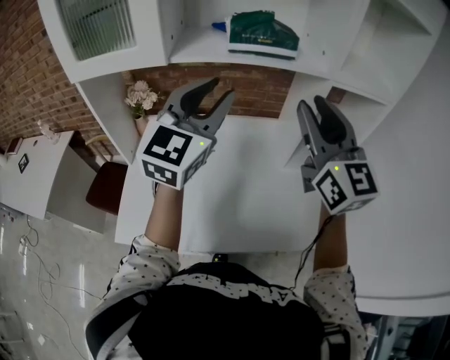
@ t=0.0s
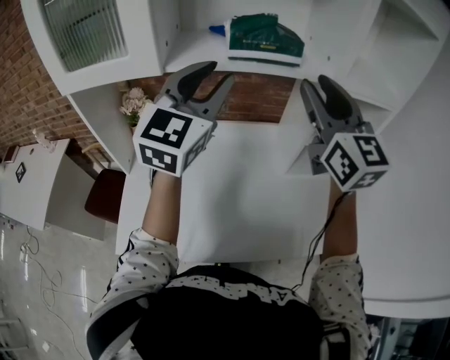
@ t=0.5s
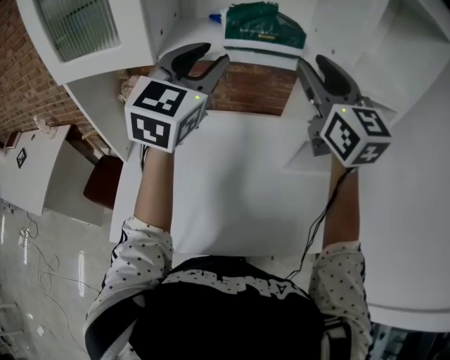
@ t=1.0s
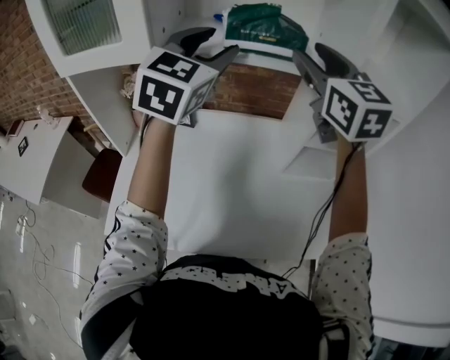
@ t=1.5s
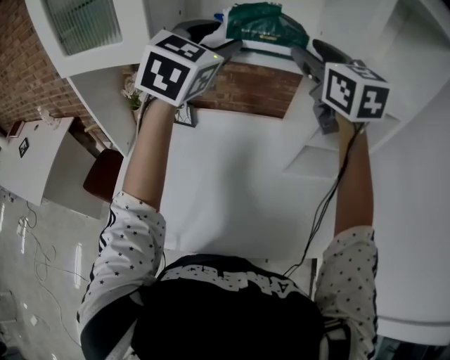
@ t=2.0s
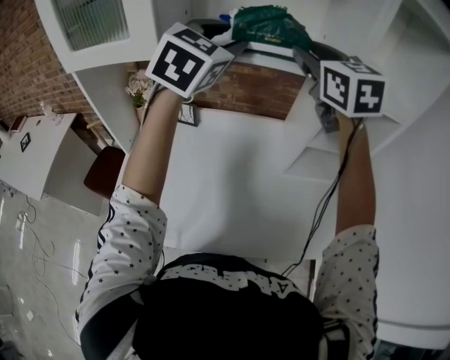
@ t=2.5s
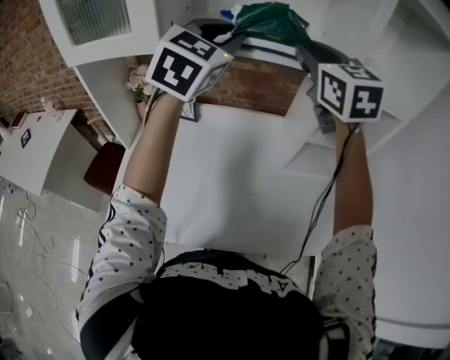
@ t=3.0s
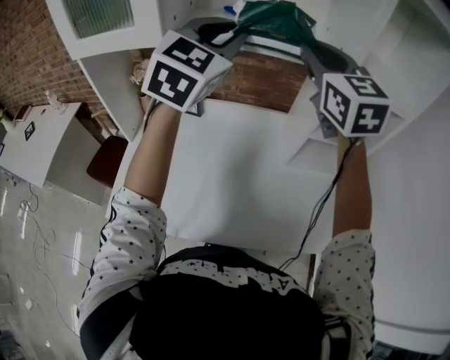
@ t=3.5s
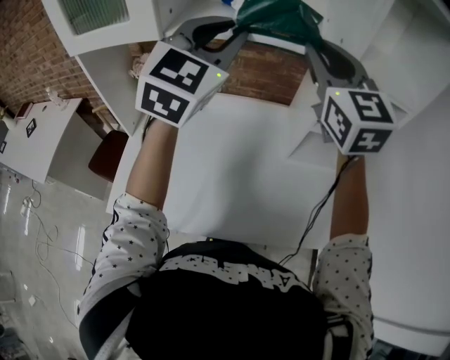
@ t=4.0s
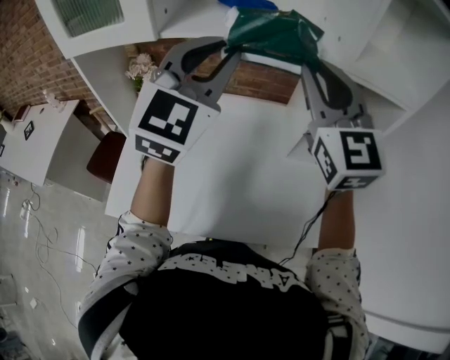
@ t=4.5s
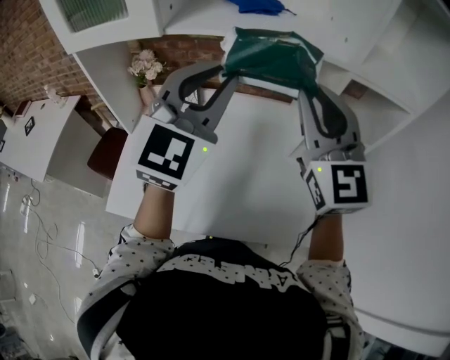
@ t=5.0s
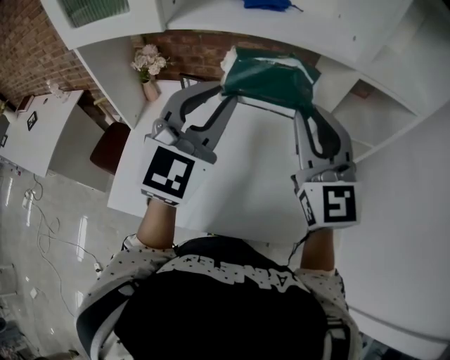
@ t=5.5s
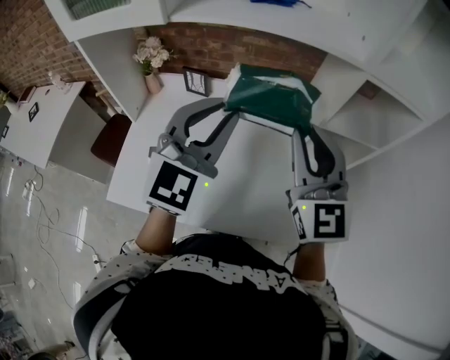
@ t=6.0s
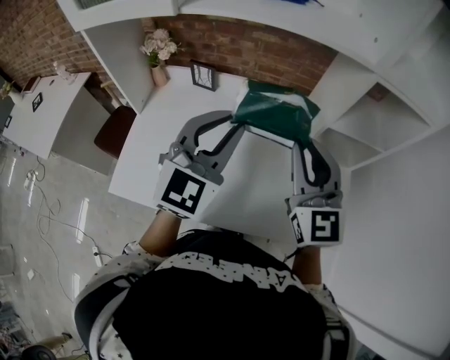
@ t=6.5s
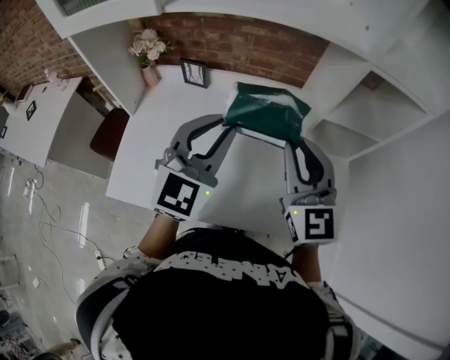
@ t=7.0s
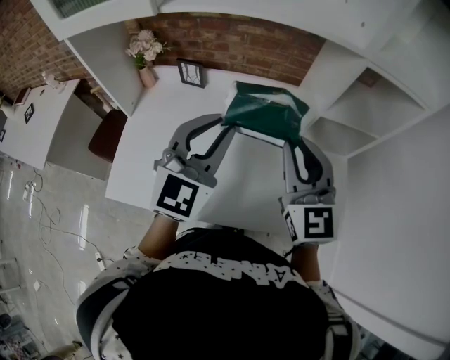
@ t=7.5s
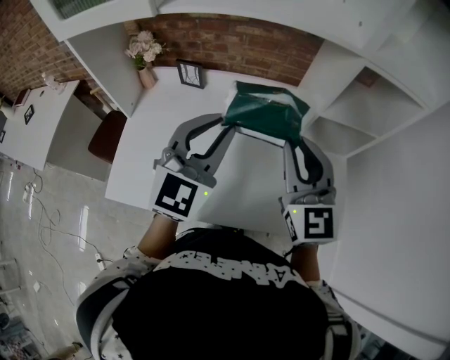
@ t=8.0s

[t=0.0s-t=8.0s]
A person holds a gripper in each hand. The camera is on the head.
t=0.0s to t=2.0s: Both grippers travel together forward, roughly 15 cm.
t=2.0s to t=4.0s: Both grippers travel together backward, roughly 5 cm. The left gripper closes its fingers; the right gripper closes.
t=4.0s to t=6.0s: Both grippers travel together downward and backward, some 15 cm.
t=6.0s to t=8.0s: The two grippers go roughly 5 cm downward.

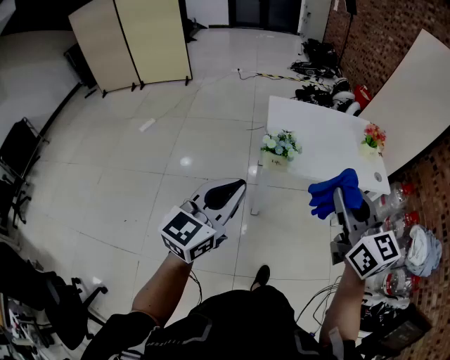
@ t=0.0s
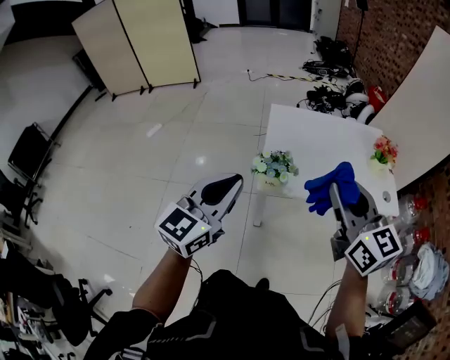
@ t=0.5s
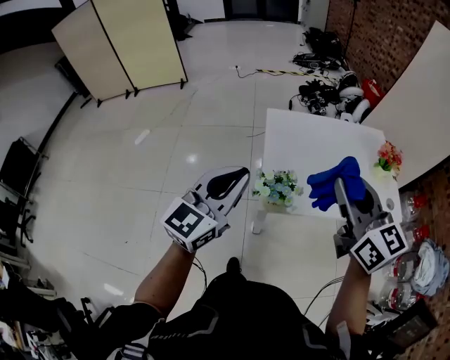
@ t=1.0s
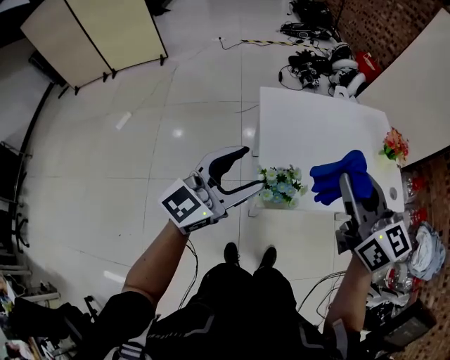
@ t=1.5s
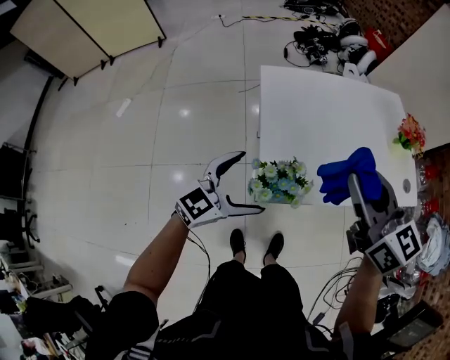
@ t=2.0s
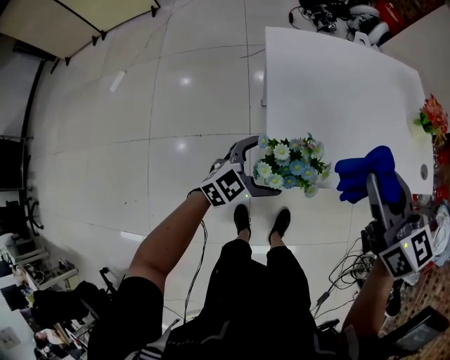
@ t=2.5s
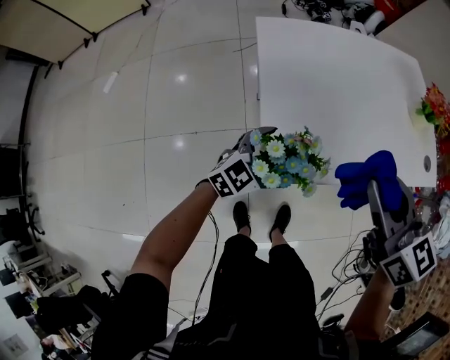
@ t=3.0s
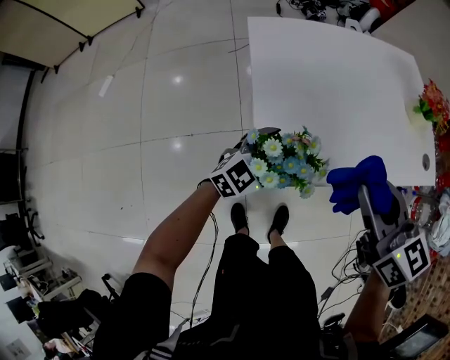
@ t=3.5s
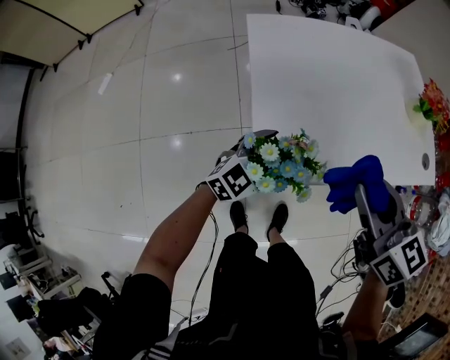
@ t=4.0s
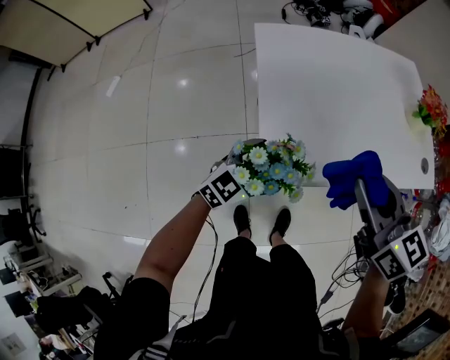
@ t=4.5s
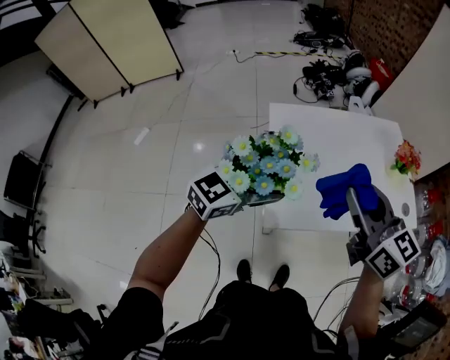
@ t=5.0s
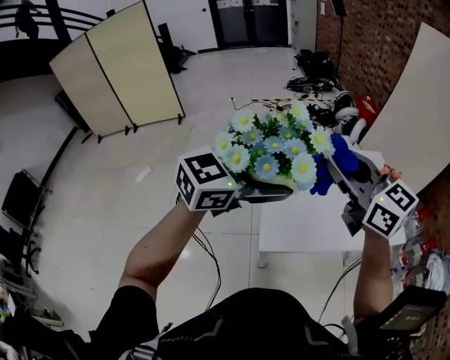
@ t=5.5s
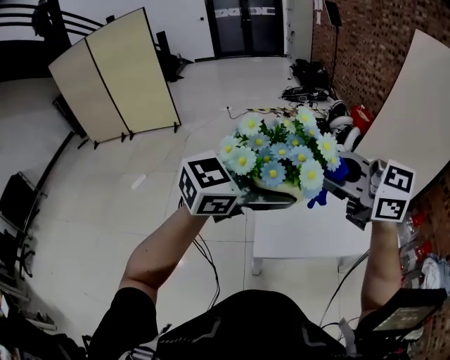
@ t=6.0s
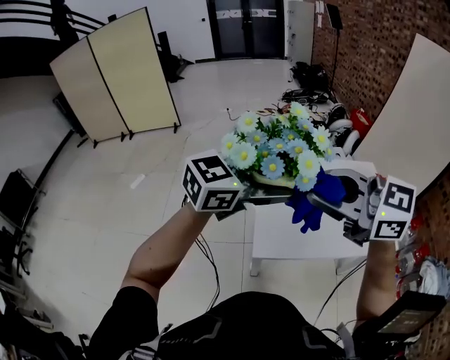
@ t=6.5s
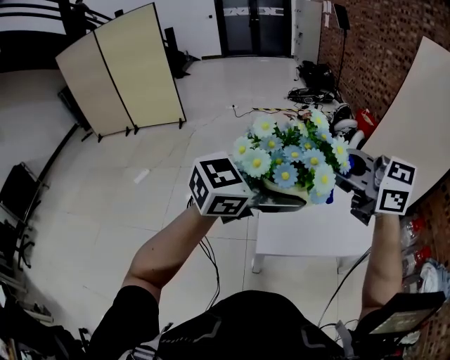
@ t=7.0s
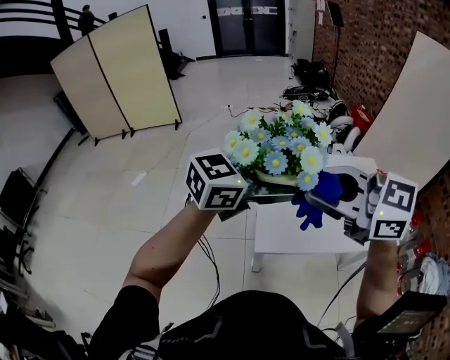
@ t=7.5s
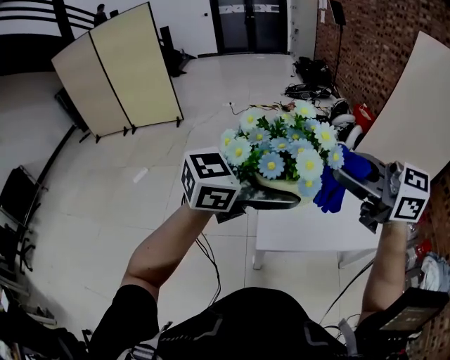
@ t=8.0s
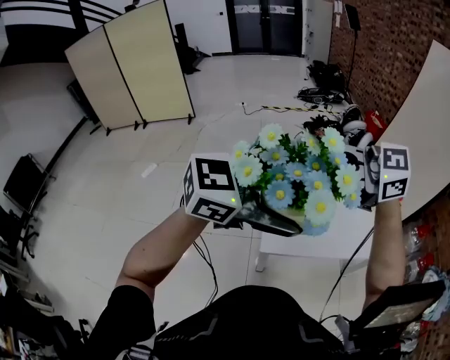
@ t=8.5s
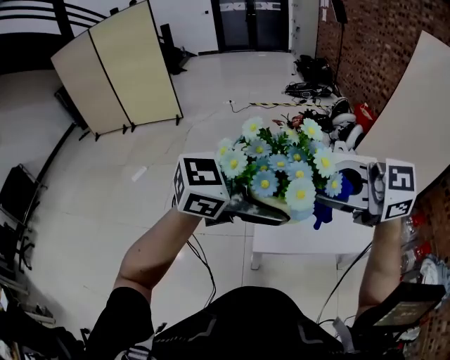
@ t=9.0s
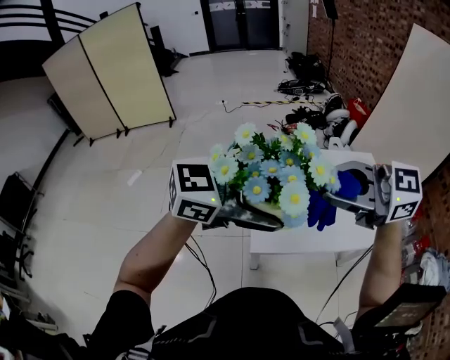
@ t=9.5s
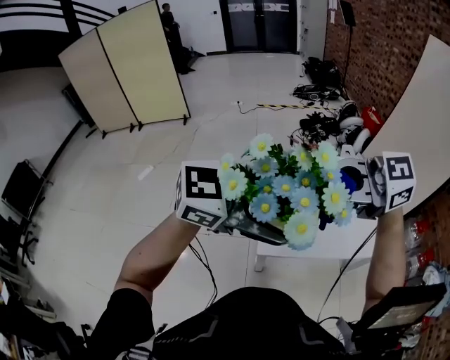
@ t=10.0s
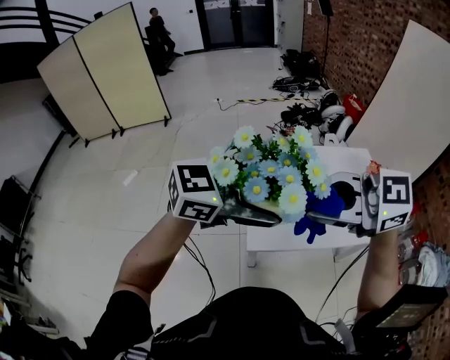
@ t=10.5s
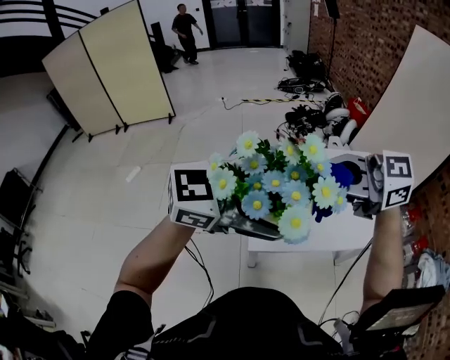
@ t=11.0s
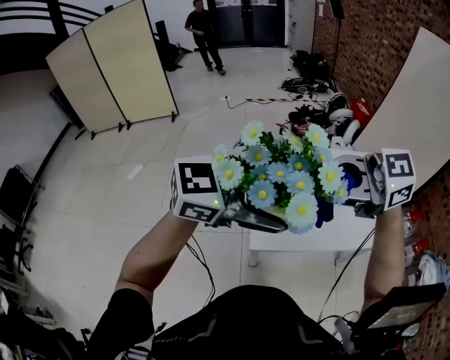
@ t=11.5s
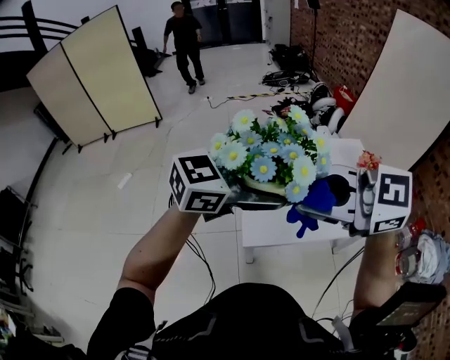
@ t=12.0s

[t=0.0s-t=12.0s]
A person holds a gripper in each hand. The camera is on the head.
t=0.0s to t=2.0s: The two grippers travel together, forward, approximately 40 cm. The left gripper travels downward by some 20 cm, rotates roughly 30 degrees, and opens its fingers.
t=2.0s to t=4.0s: Both grippers travel together downward, approximately 15 cm.
t=4.0s to t=6.0s: Both grippers move upward, some 40 cm. The right gripper rotates roughly 40 degrees.
t=8.0s to t=10.0s: The right gripper rotates approximately 30 degrees.
t=10.0s to t=12.0s: The right gripper shifts by roughly 10 cm.

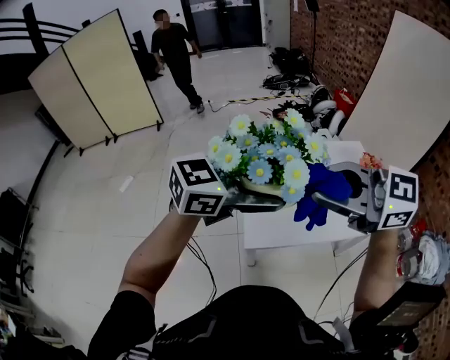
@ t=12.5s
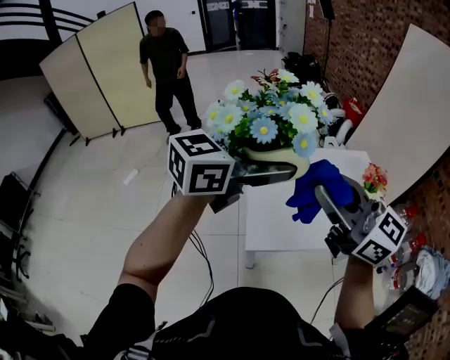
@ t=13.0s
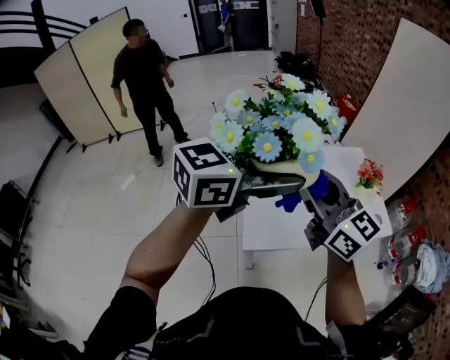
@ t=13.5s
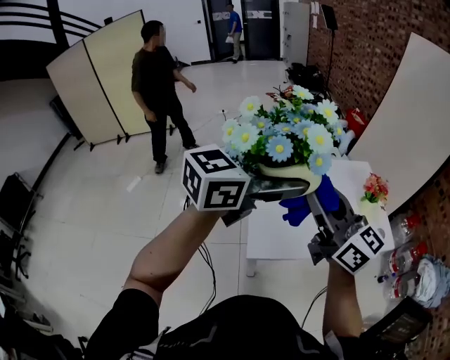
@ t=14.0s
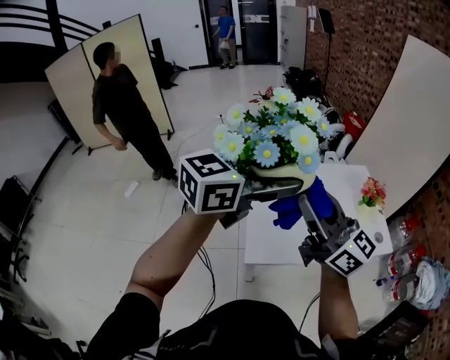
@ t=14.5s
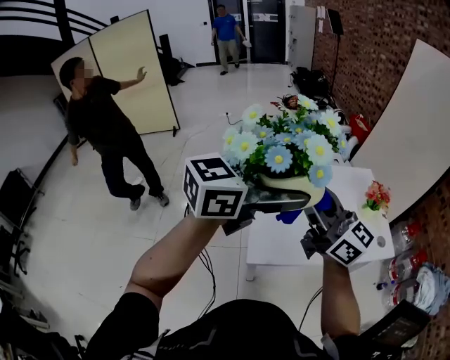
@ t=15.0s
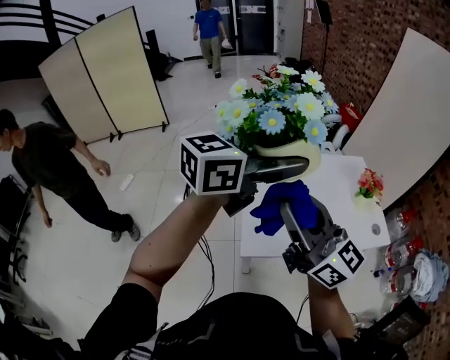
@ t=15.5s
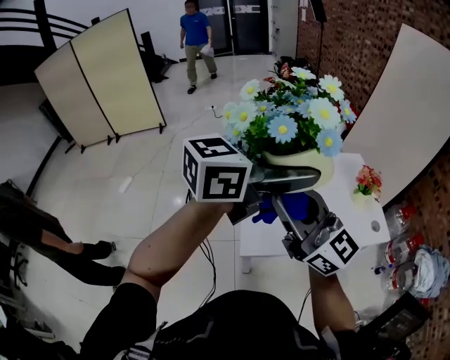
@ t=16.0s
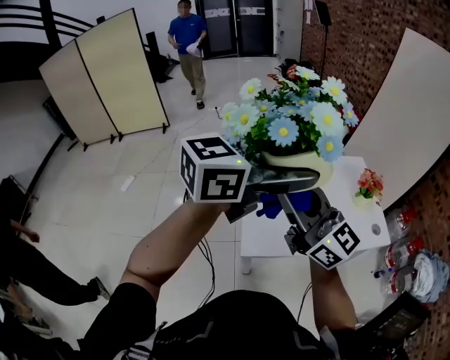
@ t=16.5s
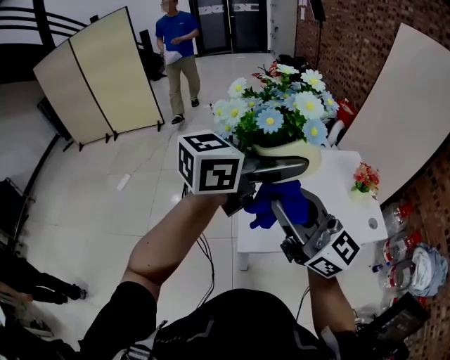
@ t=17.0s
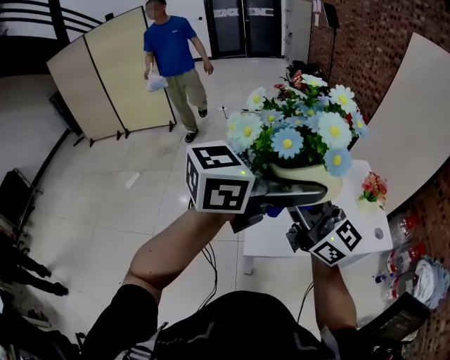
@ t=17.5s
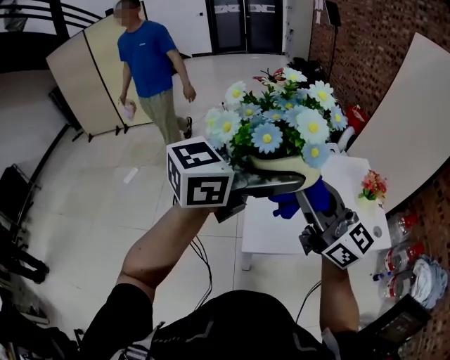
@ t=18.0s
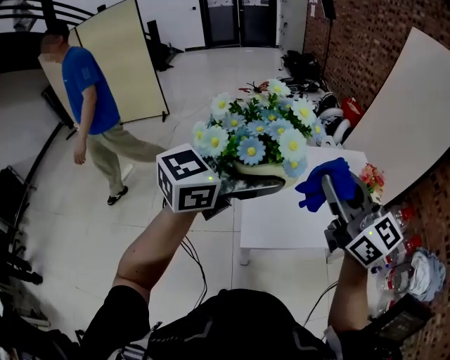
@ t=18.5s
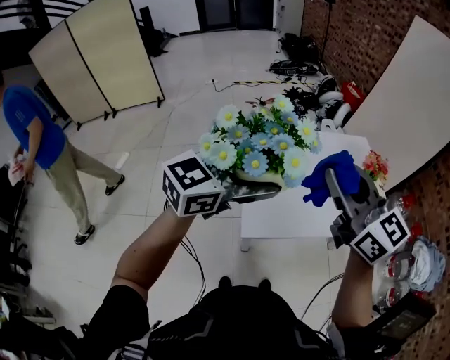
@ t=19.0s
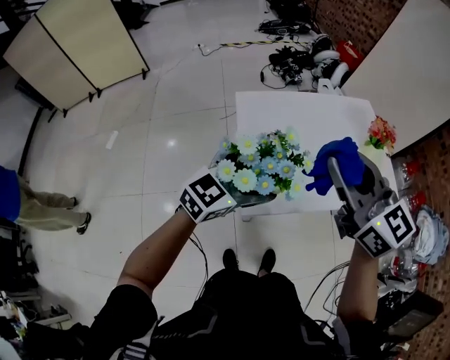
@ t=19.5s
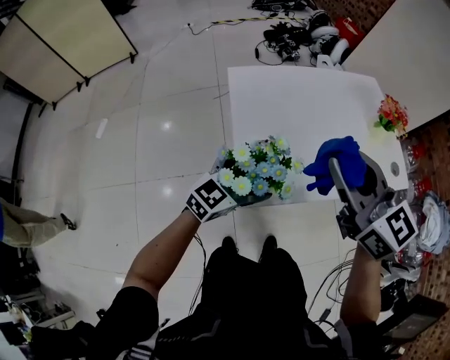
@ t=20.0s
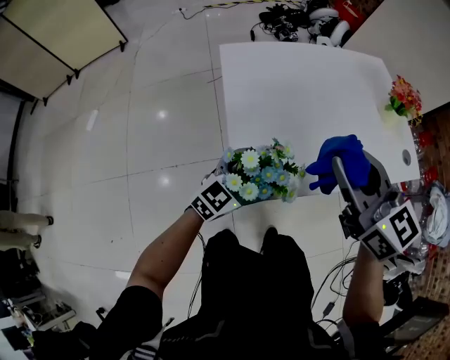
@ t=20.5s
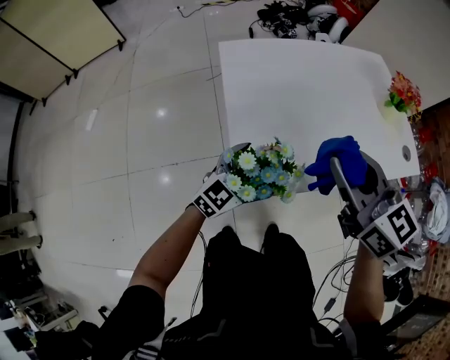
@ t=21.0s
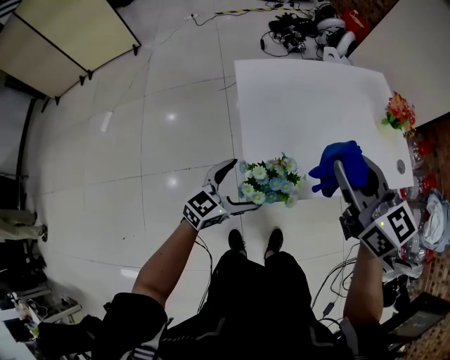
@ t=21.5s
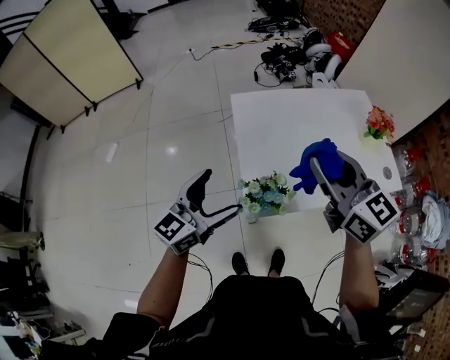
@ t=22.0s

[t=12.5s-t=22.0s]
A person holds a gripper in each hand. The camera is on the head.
t=12.5s to t=14.5s: The right gripper moves roughly 5 cm, and points its fingers roughly 30 degrees further upward, while the left gripper is displaced upward by some 5 cm.
t=14.5s to t=16.5s: The right gripper heads to the left, covering some 5 cm, and reaches about 5 cm backward, then returns.
t=16.5s to t=18.0s: The right gripper travels to the right by some 5 cm.
t=18.0s to t=20.0s: The left gripper travels downward by about 40 cm. Meanwhile the right gripper is displaced downward and forward by roughly 20 cm, and rotates roughly 30 degrees.
t=20.0s to t=22.0s: The left gripper shifts some 20 cm upward, to the left and backward, and turns by roughly 20 degrees, while the right gripper travels downward and back again, some 10 cm each way.
